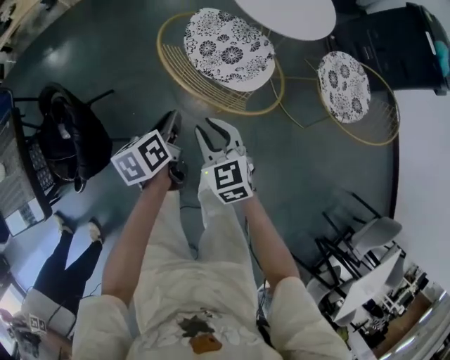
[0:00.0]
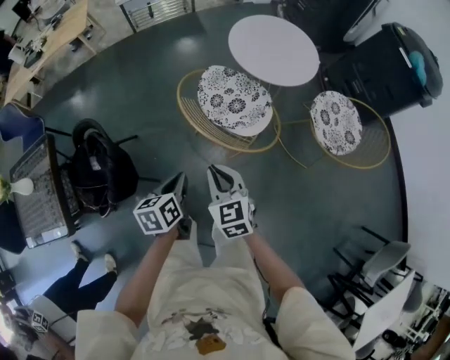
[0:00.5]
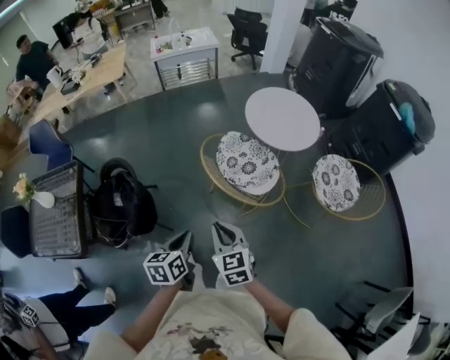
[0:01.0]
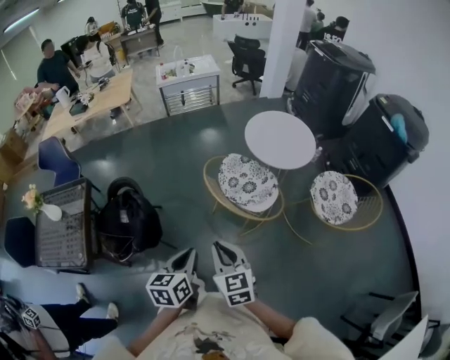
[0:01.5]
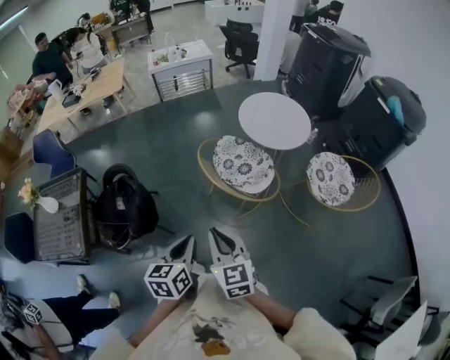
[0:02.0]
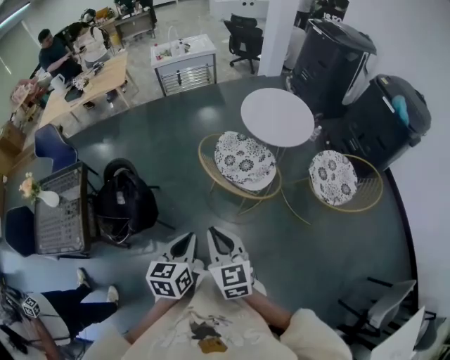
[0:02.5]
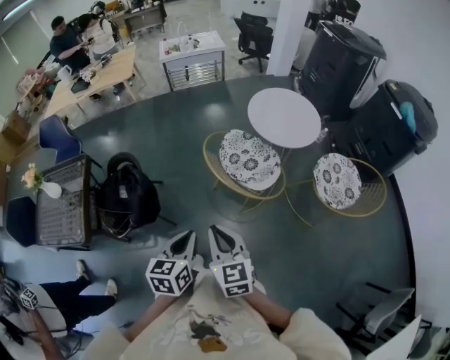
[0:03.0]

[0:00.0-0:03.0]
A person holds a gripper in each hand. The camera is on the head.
0:00.0 to 0:01.5: The grippers both shift upward and backward by roughly 35 cm. The left gripper rotates approximately 20 degrees.
0:01.5 to 0:03.0: The grippers stay close to where they were, moving slightly.

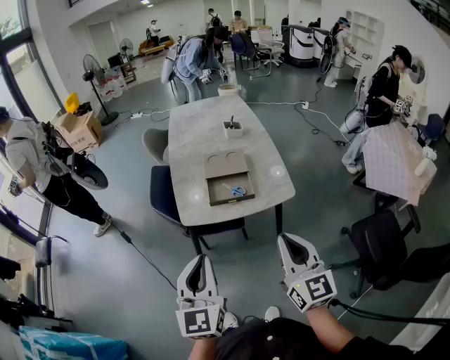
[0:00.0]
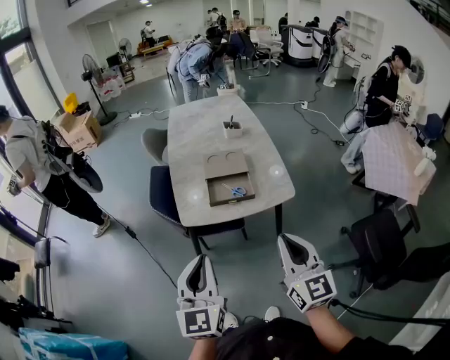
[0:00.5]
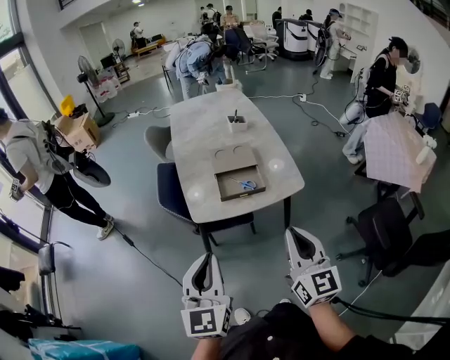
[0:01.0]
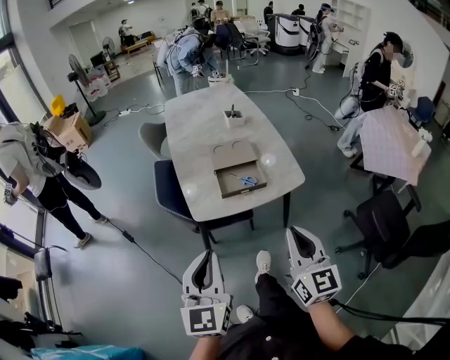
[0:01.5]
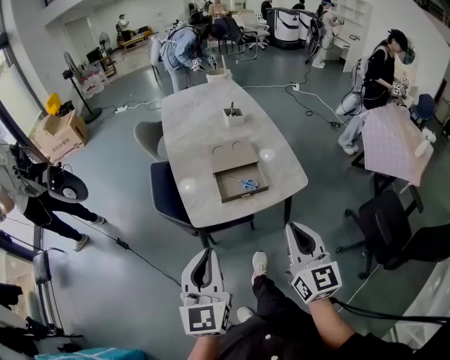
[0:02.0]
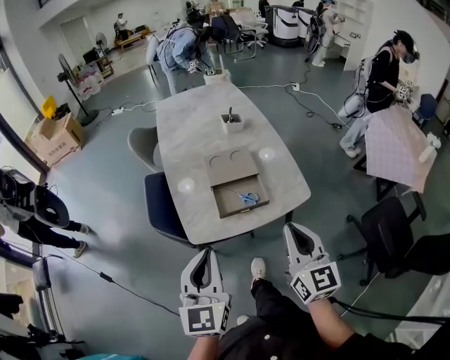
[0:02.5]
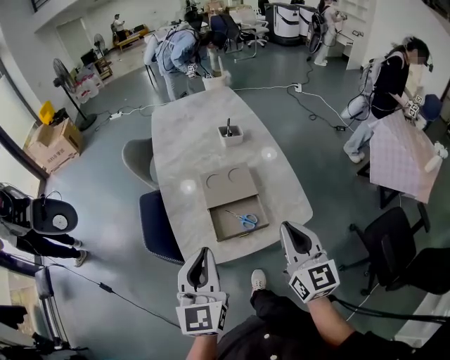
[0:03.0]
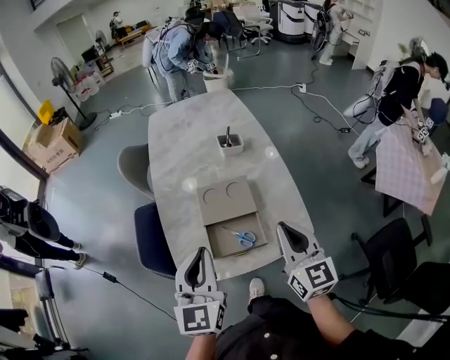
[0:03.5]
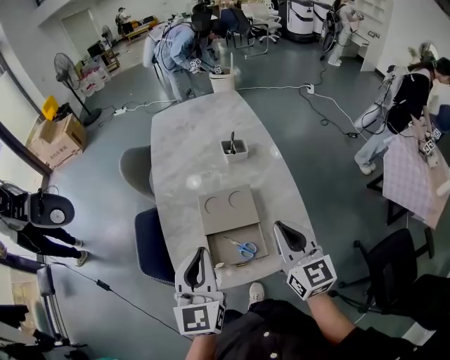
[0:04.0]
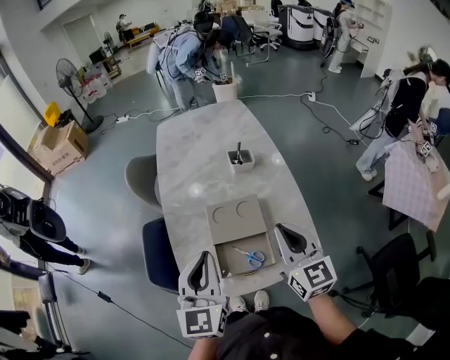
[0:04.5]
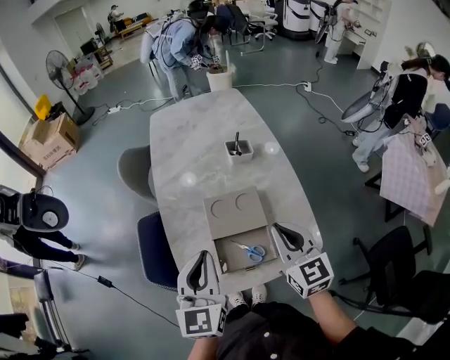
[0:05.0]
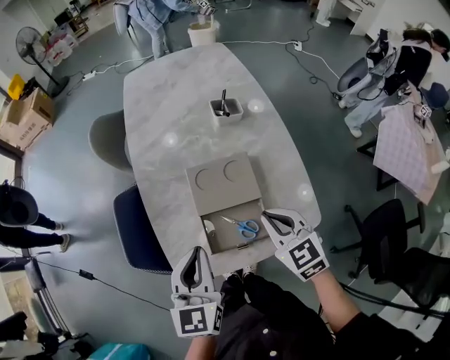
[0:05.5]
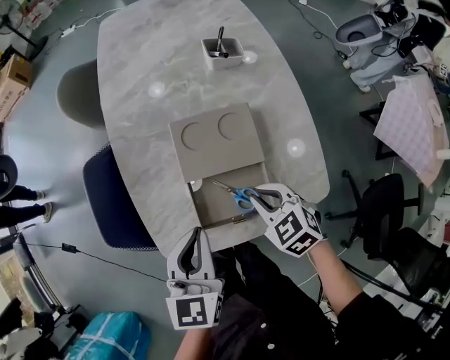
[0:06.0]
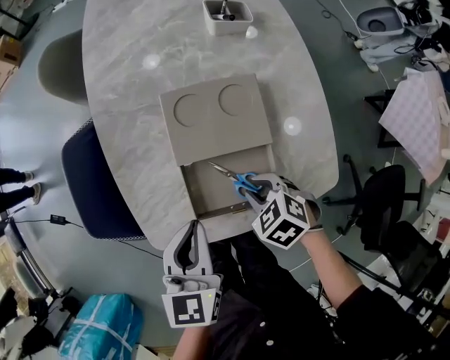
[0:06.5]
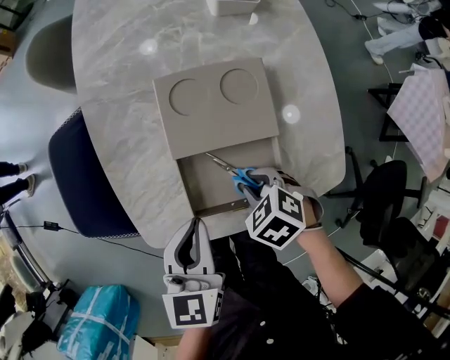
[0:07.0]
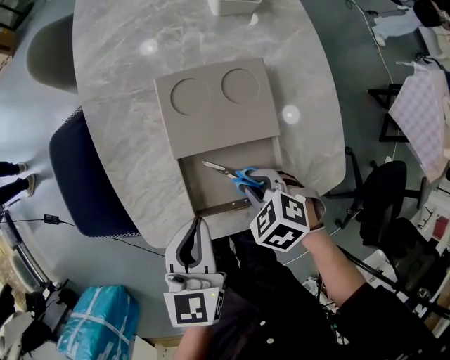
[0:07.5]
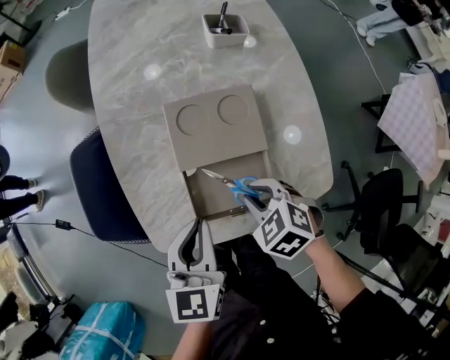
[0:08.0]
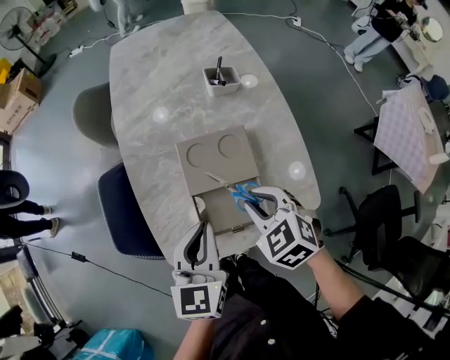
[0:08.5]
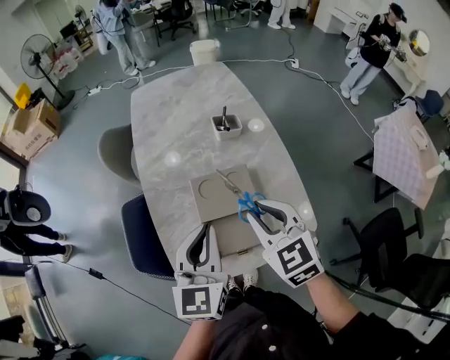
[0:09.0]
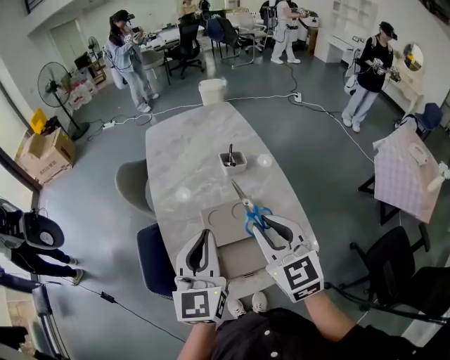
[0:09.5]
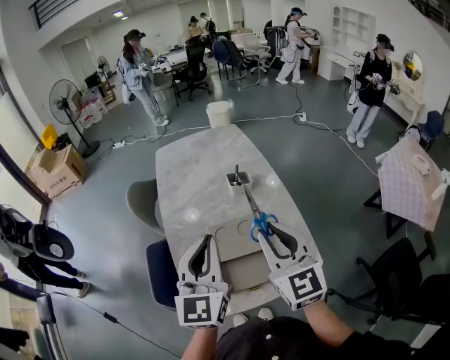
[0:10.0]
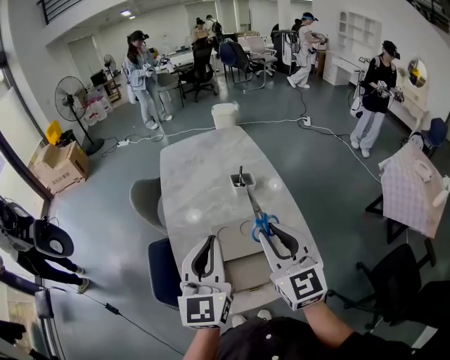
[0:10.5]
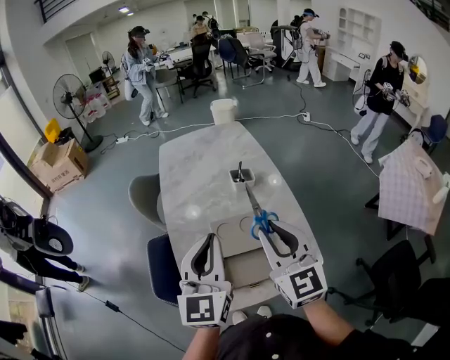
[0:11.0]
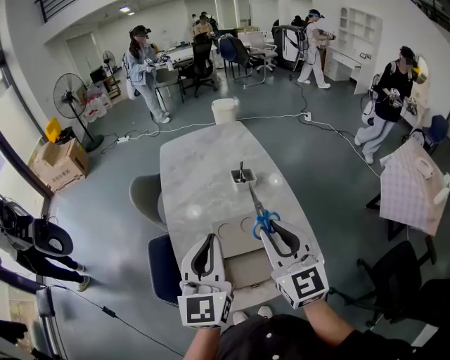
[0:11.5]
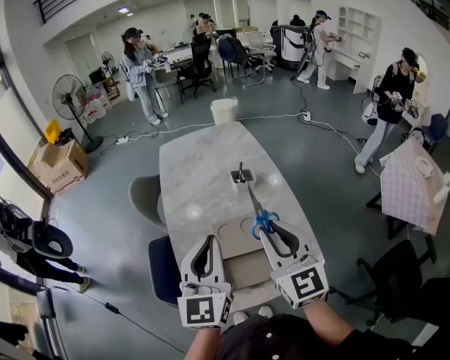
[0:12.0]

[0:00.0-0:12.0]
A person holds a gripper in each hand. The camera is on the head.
0:00.0 to 0:02.0: Both grippers travel together forward and to the left, approximately 10 cm.
0:02.0 to 0:04.0: The grippers both shift forward by some 35 cm.
0:04.0 to 0:06.0: The left gripper goes approximately 15 cm downward, and rotates approximately 20 degrees, while the right gripper heads downward, covering approximately 25 cm, and tilts its fingers roughly 50 degrees downward.
0:06.0 to 0:08.0: The right gripper reaches roughly 10 cm downward, then returns.
0:08.0 to 0:10.0: The grippers both shift upward by roughly 35 cm. The right gripper points its fingers roughly 60 degrees further upward; the left gripper angles its fingers upward, by some 30 degrees.
0:10.0 to 0:12.0: The two grippers keep their place.

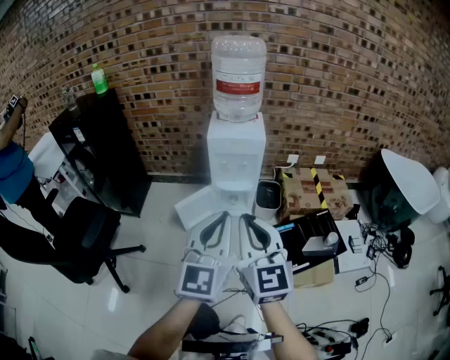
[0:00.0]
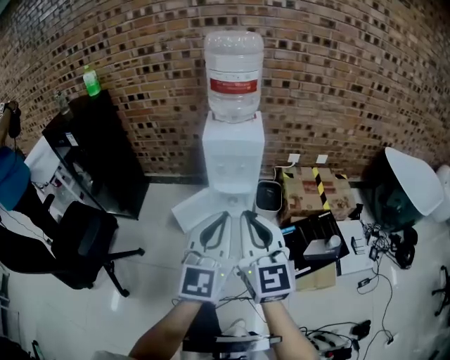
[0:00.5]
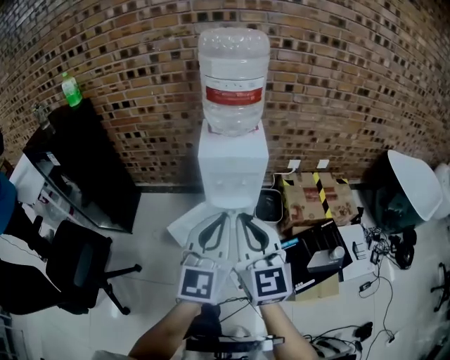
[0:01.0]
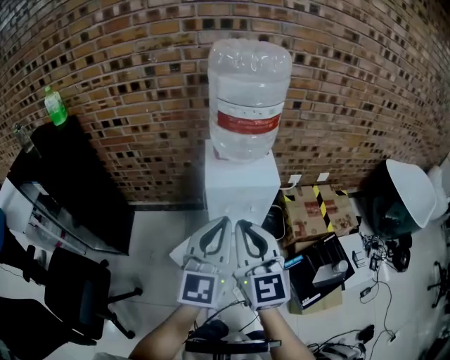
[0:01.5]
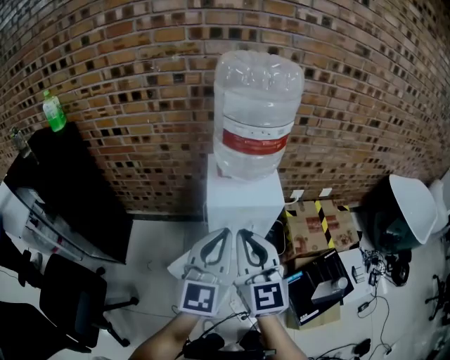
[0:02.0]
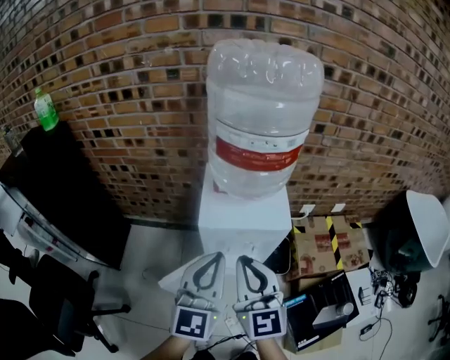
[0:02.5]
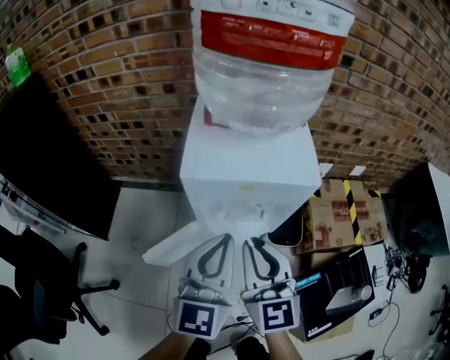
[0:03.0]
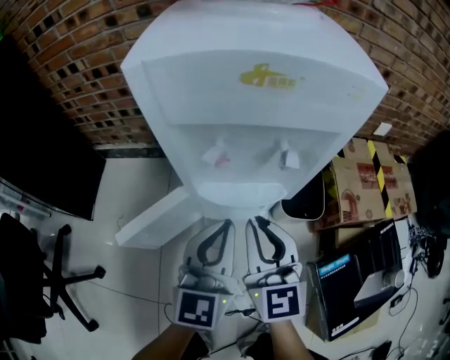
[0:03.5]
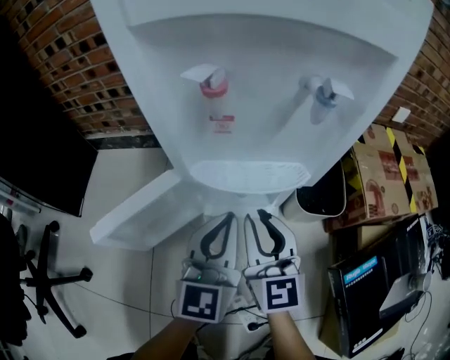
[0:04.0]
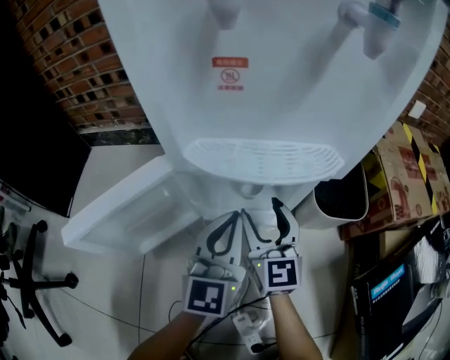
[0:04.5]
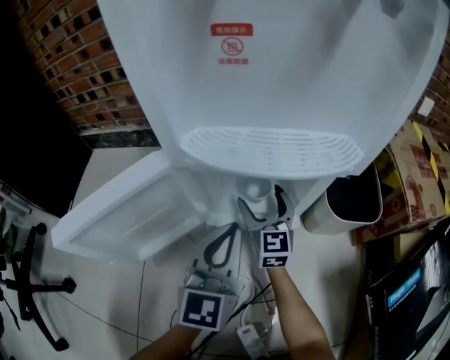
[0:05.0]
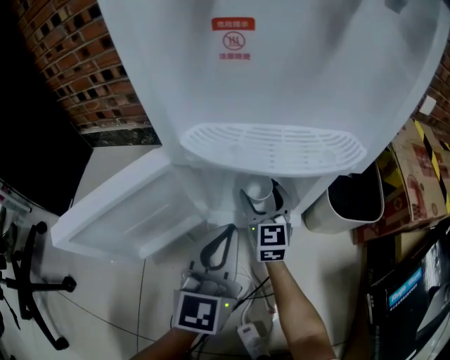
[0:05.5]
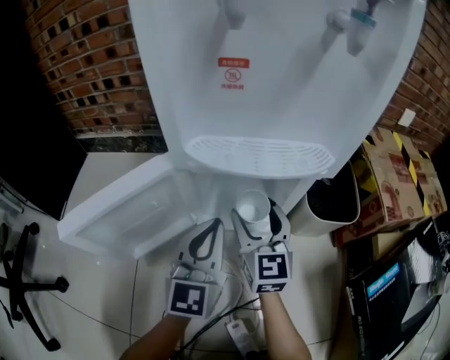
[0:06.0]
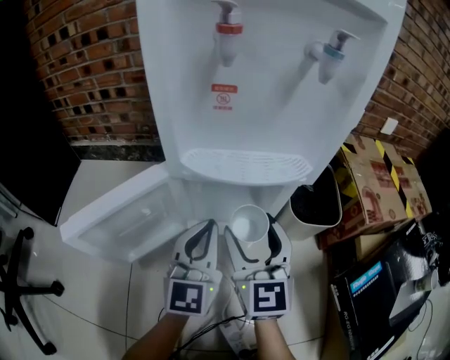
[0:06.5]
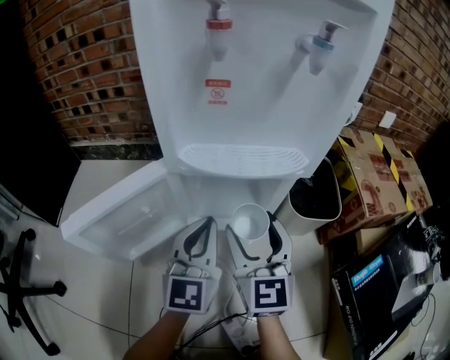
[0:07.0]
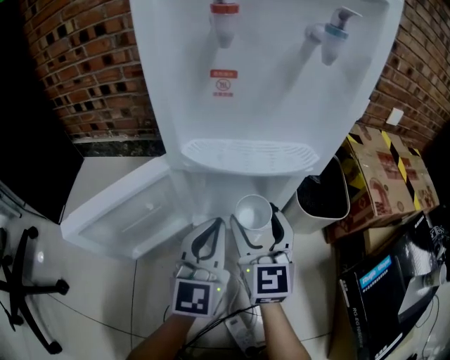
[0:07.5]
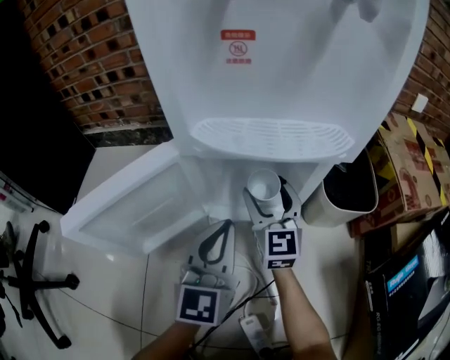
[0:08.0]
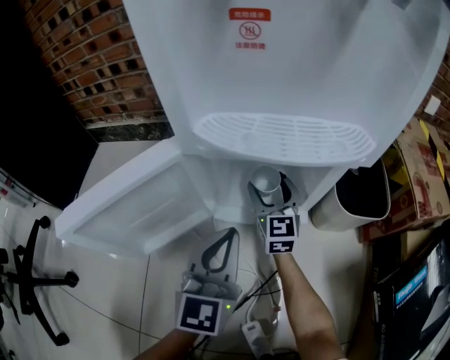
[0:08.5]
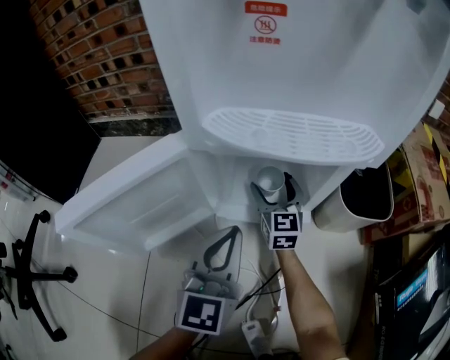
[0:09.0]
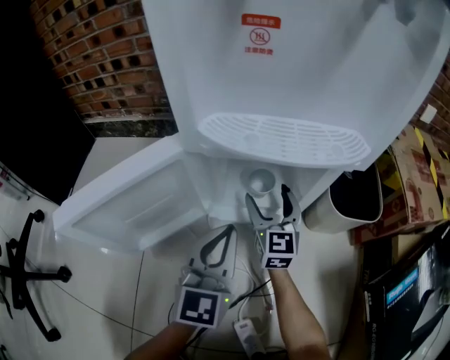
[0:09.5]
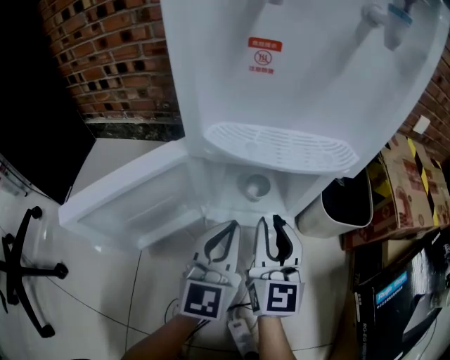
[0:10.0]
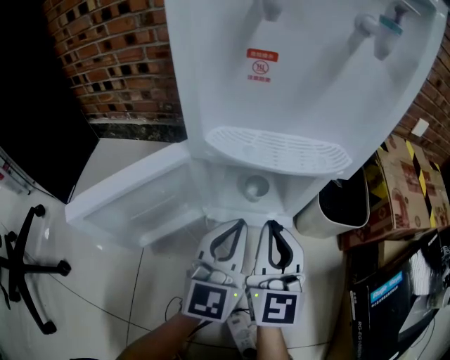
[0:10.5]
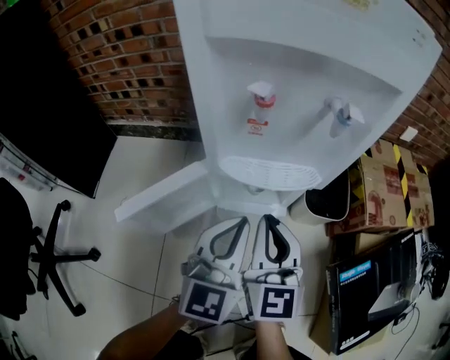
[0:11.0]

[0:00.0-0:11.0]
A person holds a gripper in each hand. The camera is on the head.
0:00.0 to 0:02.0: The grippers both shift forward by some 35 cm.
0:02.0 to 0:03.5: The two grippers go about 50 cm downward.
0:03.5 to 0:05.5: The left gripper is displaced downward by some 30 cm. Meanwhile the right gripper is displaced downward and forward by approximately 40 cm, and opens.
0:05.5 to 0:07.5: The right gripper travels upward and backward by about 20 cm.
0:07.5 to 0:09.0: The right gripper goes approximately 20 cm downward and forward. Meanwhile the left gripper travels downward by about 5 cm.
0:09.0 to 0:11.0: The right gripper goes about 40 cm upward and backward, and closes. The left gripper goes approximately 20 cm upward.

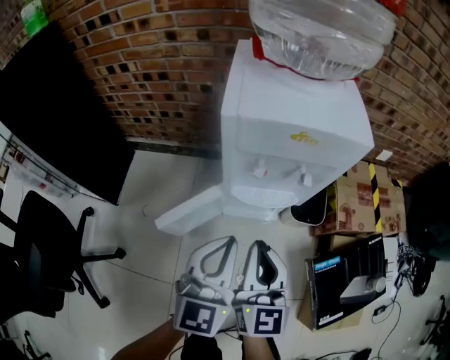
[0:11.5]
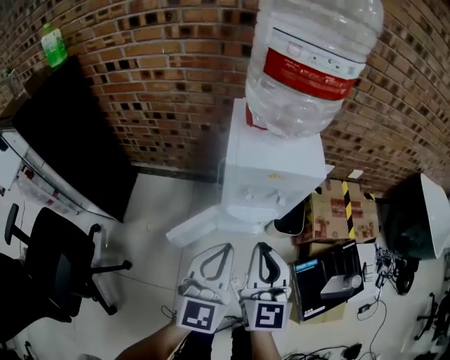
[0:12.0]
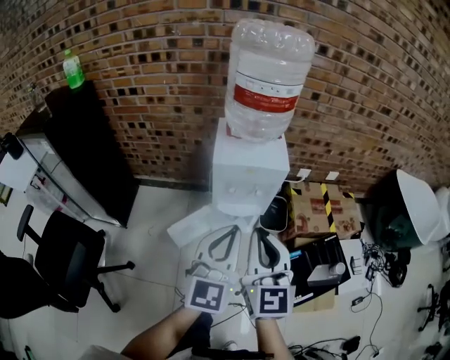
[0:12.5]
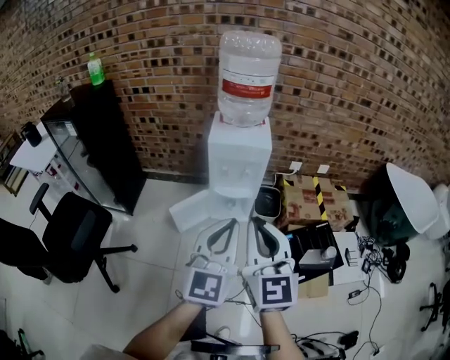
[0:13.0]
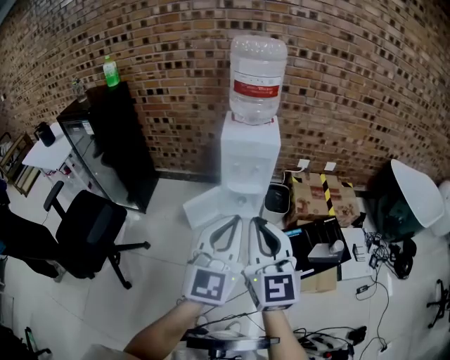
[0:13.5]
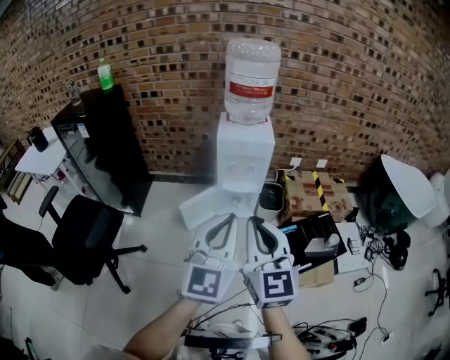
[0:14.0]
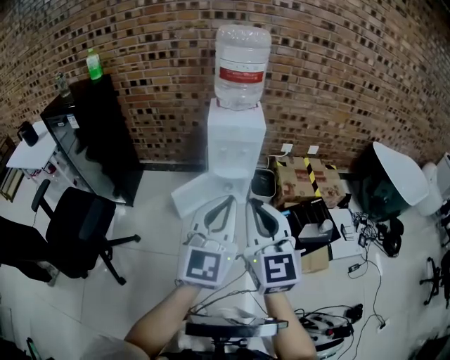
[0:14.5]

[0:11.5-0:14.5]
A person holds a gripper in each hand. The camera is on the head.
0:11.5 to 0:13.0: Both grippers travel together upward and backward, roughly 40 cm.
0:13.0 to 0:14.5: The two grippers go roughly 10 cm backward.
